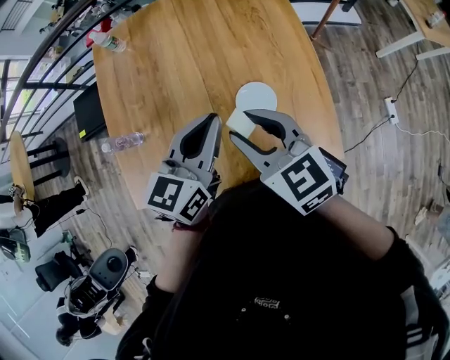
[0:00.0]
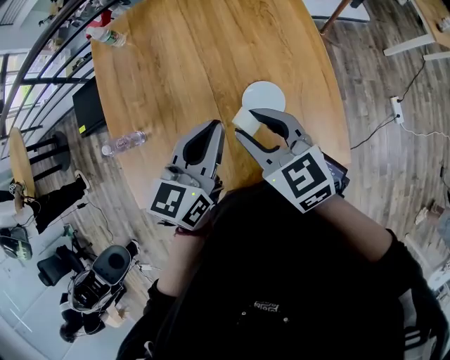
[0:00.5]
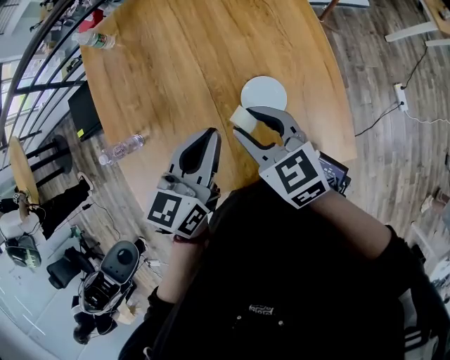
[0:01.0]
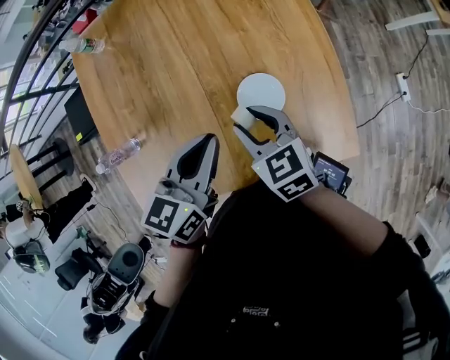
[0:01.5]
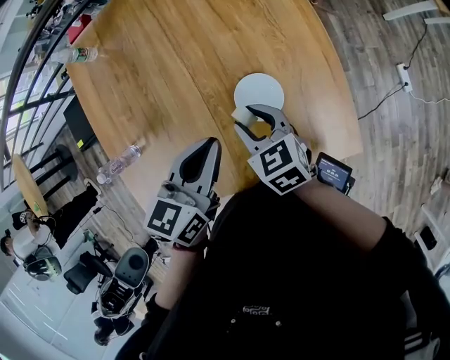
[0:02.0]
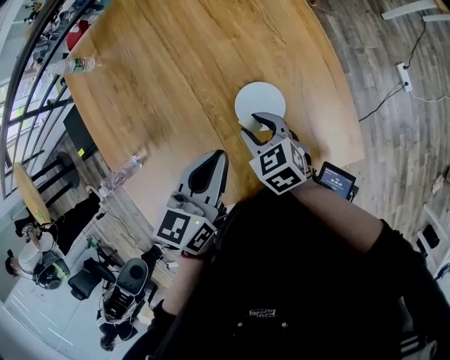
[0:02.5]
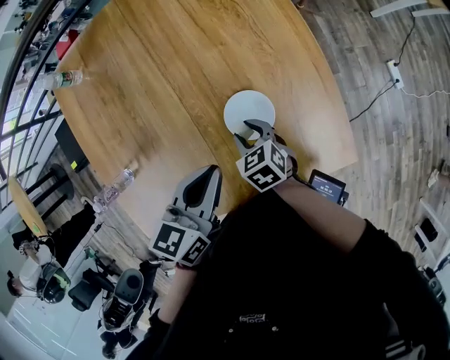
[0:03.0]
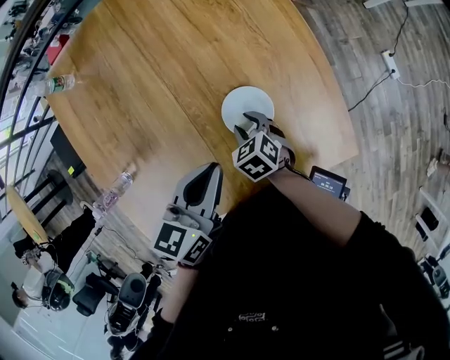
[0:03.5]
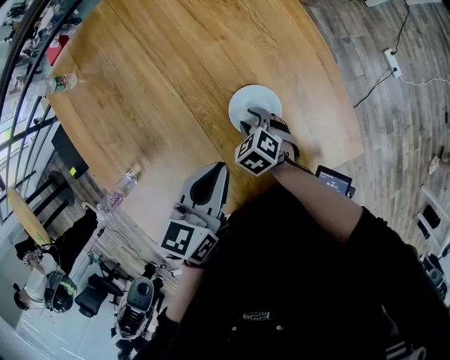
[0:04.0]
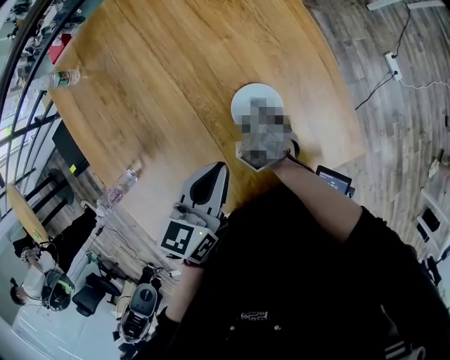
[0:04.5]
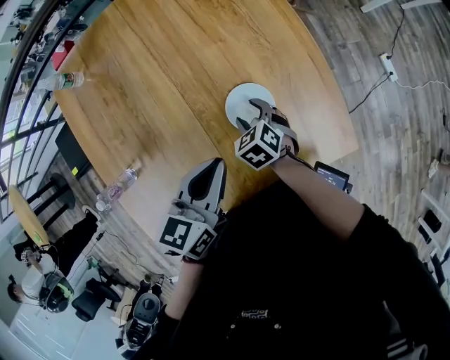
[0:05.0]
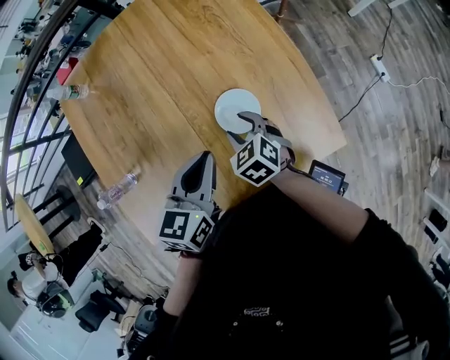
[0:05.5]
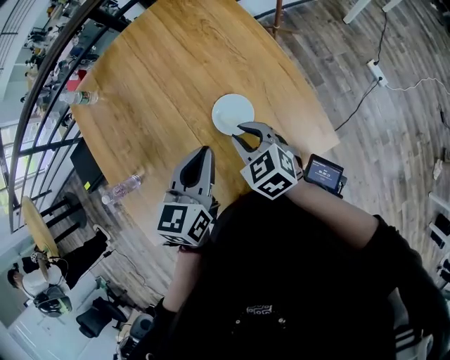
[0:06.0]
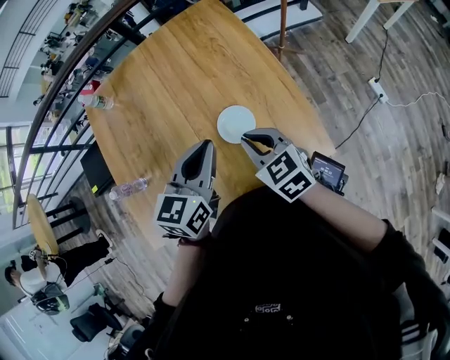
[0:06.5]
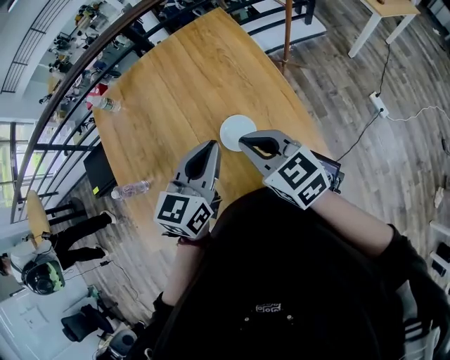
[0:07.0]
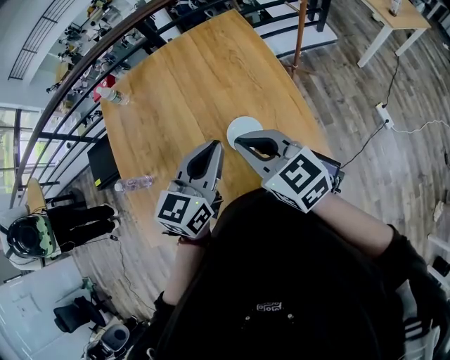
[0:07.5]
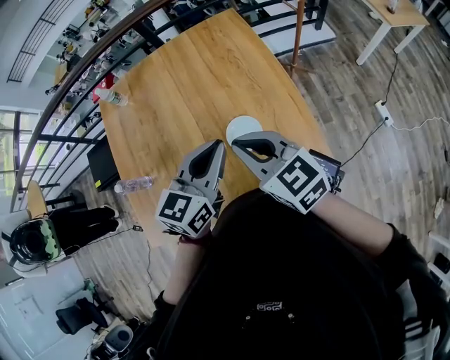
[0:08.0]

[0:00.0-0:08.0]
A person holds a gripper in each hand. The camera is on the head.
0:00.0 to 0:02.0: The right gripper shifts some 20 cm downward, and rotates about 20 degrees. The left gripper shifts roughly 10 cm downward.
0:02.0 to 0:04.0: The right gripper moves downward, some 15 cm, and rotates roughly 30 degrees; the left gripper changes place by approximately 5 cm.
0:04.0 to 0:06.0: The left gripper moves upward, roughly 5 cm. Meanwhile the right gripper travels upward by approximately 20 cm, and turns by approximately 30 degrees.
0:06.0 to 0:08.0: The left gripper travels upward by about 10 cm; the right gripper is displaced upward by approximately 20 cm, and rotates approximately 30 degrees.

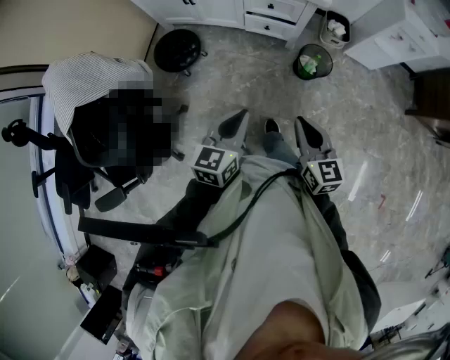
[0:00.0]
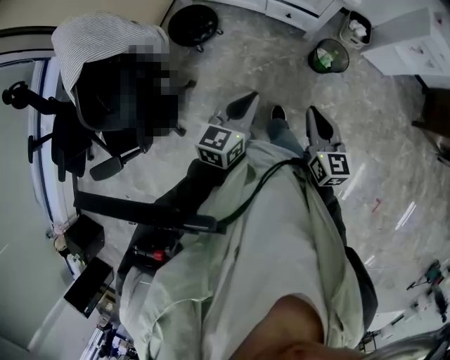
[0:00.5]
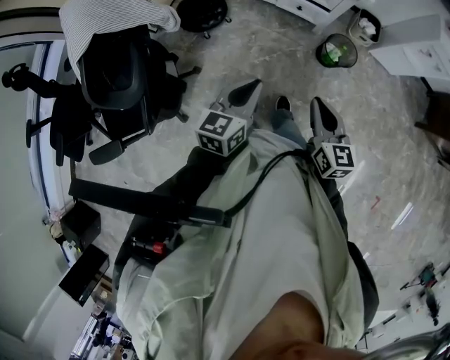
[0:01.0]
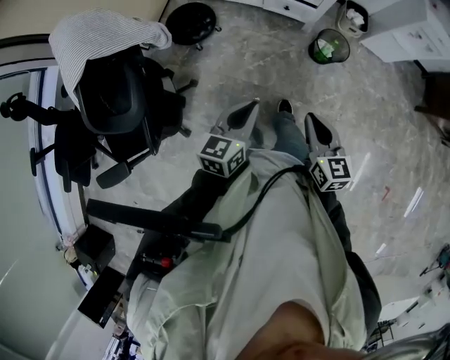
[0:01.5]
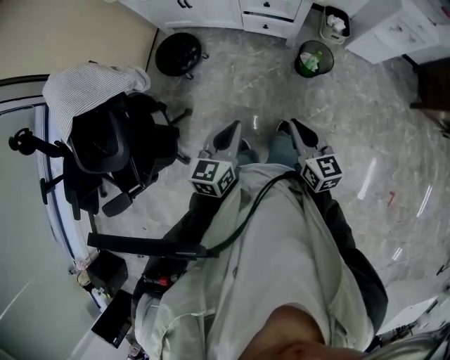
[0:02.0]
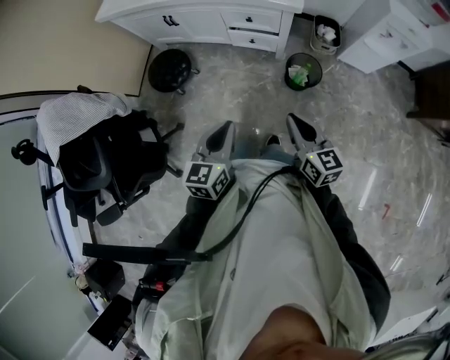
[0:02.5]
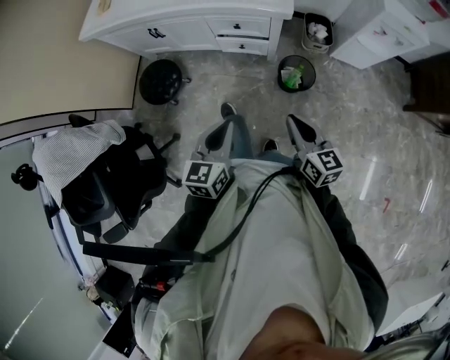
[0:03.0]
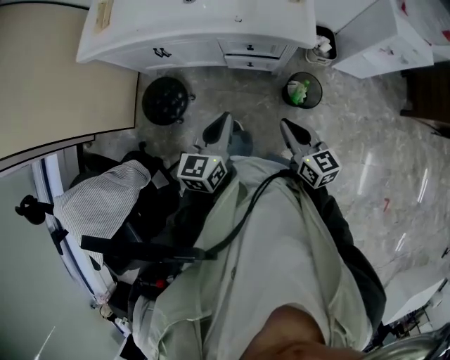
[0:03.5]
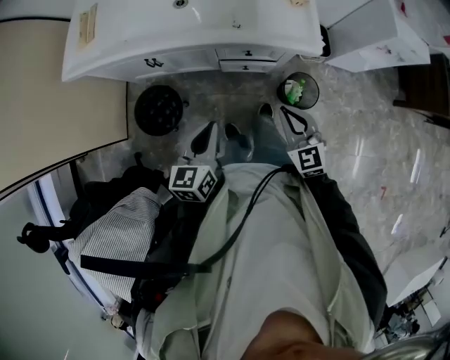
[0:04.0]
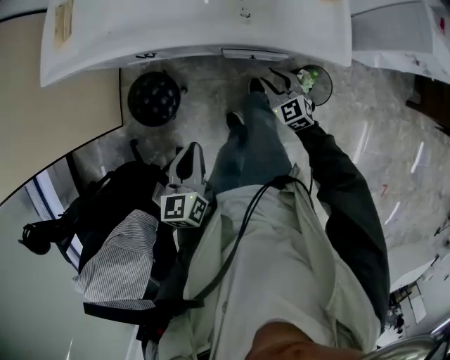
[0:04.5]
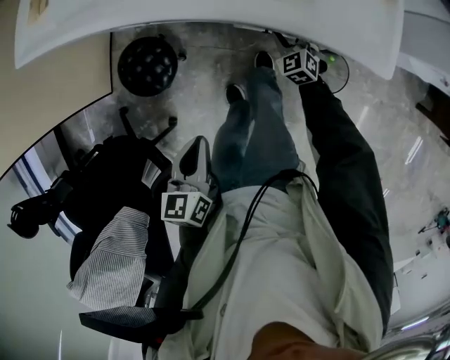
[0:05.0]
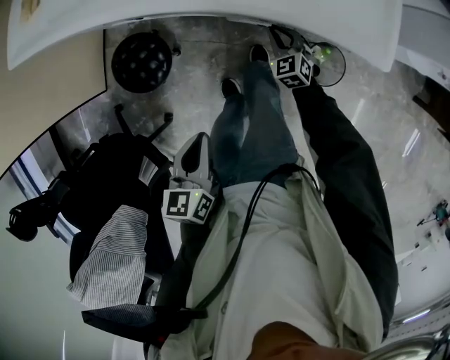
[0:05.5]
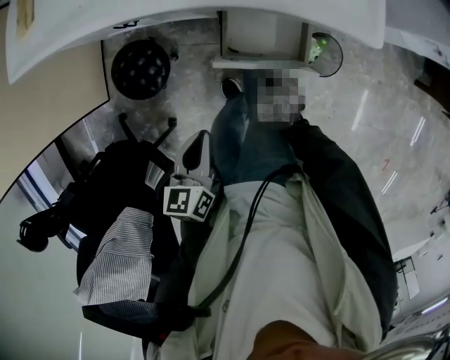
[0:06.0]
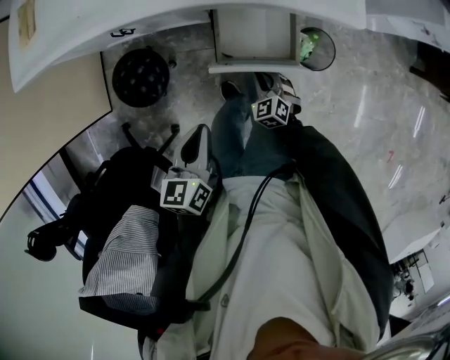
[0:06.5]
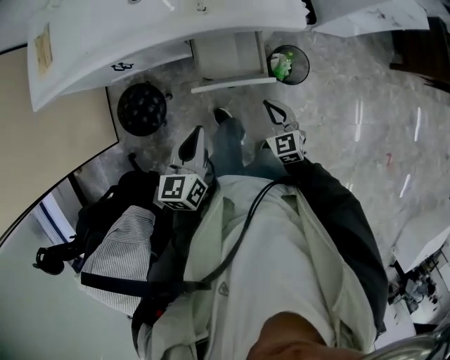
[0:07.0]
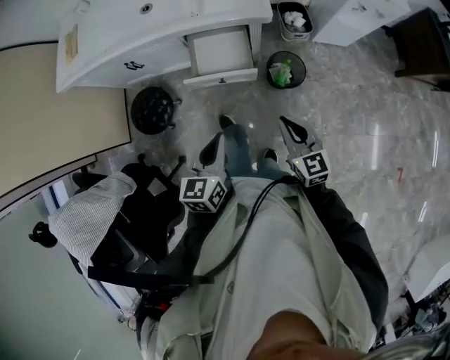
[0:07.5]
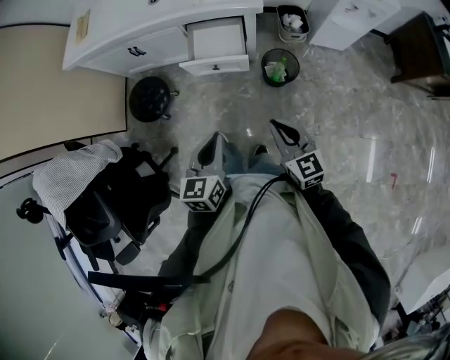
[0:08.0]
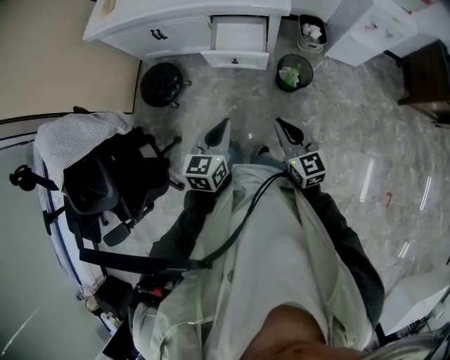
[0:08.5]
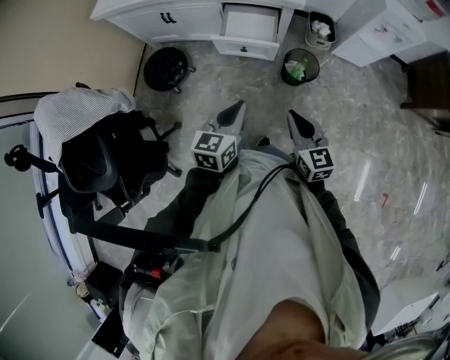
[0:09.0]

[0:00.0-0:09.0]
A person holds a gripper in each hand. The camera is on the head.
0:02.0 to 0:04.5: The left gripper is displaced forward by approximately 35 cm. Meanwhile the right gripper is displaced forward and downward by approximately 50 cm, swivels roughly 40 degrees, and opens.
0:04.5 to 0:07.0: The right gripper heads backward, covering roughly 15 cm, turns by about 20 degrees, and closes, while the left gripper heads to the right, covering some 10 cm.
0:07.0 to 0:09.0: The right gripper travels backward and upward by about 30 cm, and changes its angle by about 20 degrees. Meanwhile the left gripper travels backward and to the right by roughly 25 cm.

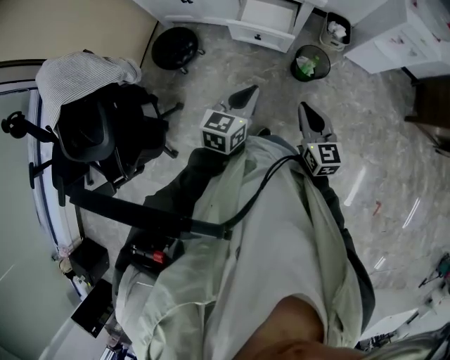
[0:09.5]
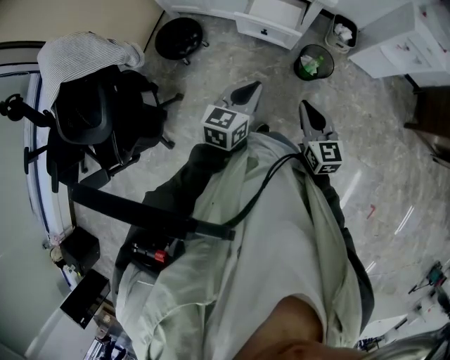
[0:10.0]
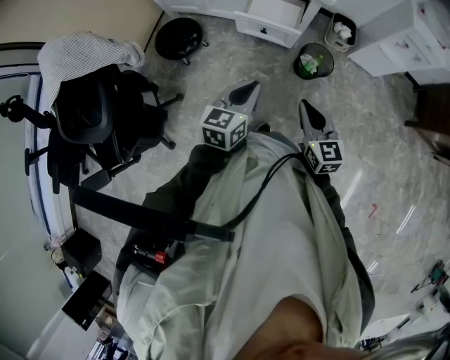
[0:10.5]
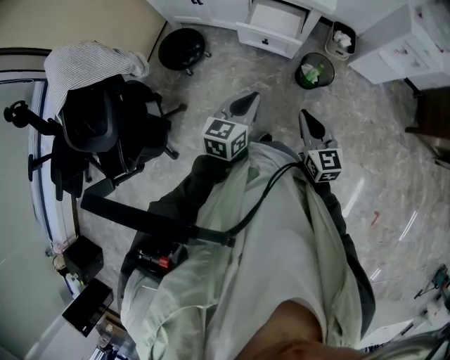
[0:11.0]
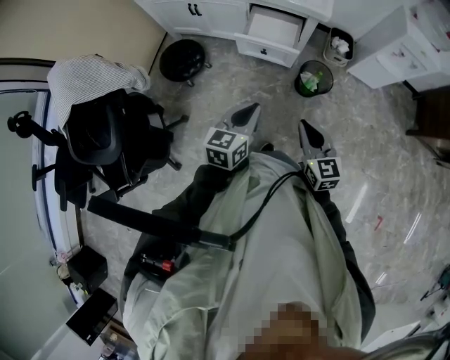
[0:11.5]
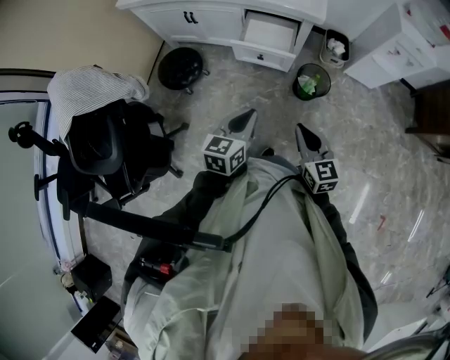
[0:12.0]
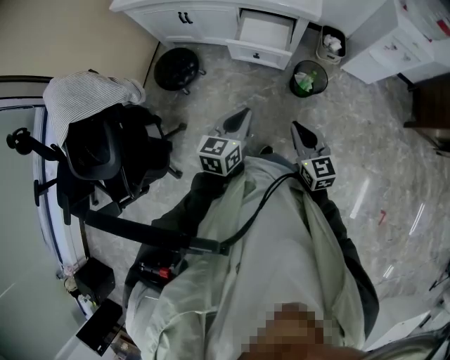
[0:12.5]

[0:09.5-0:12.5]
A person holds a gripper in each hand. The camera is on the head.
0:09.5 to 0:11.0: The grippers stay close to where they were, moving slightly.
0:11.0 to 0:12.5: Neither gripper changes place.

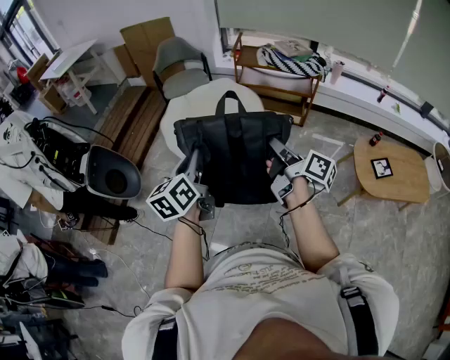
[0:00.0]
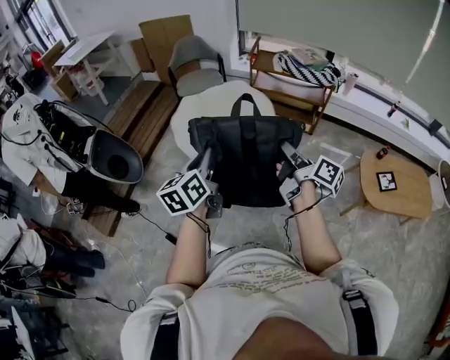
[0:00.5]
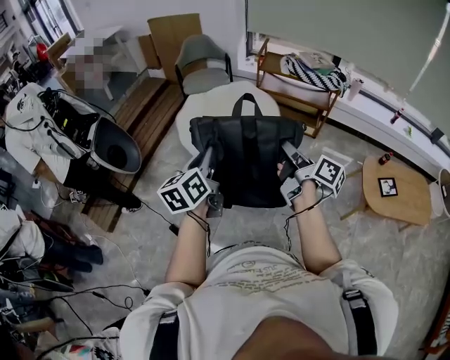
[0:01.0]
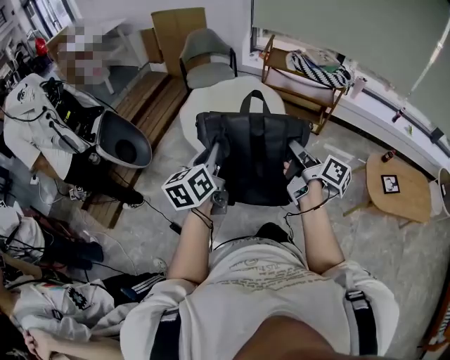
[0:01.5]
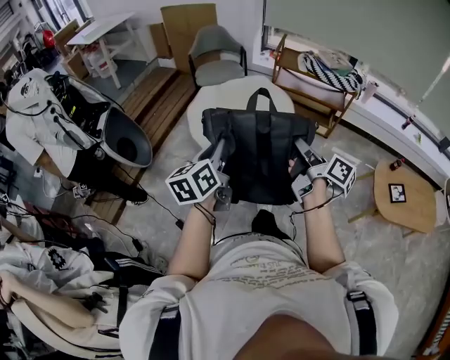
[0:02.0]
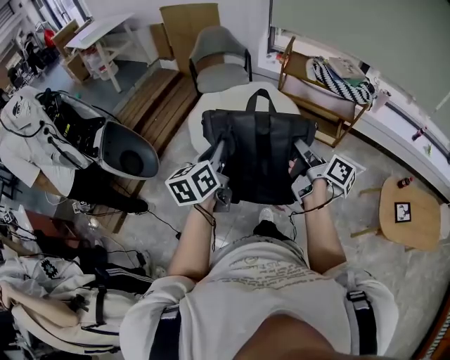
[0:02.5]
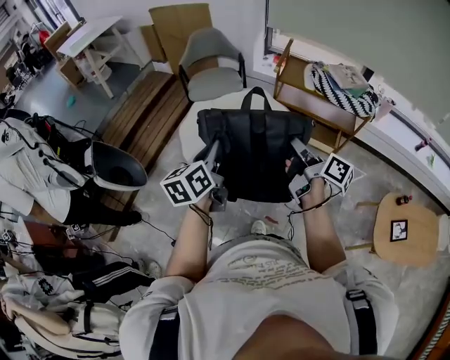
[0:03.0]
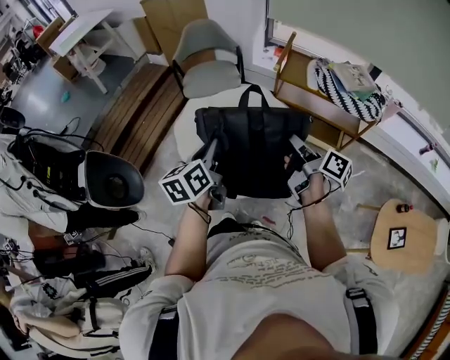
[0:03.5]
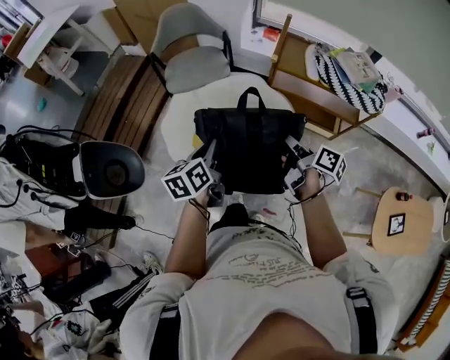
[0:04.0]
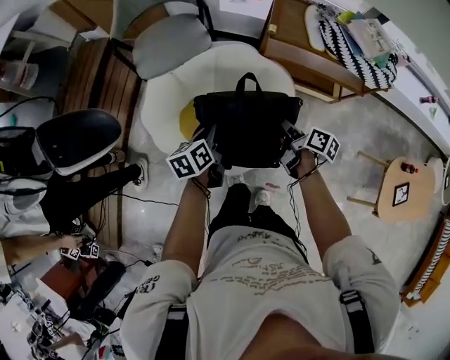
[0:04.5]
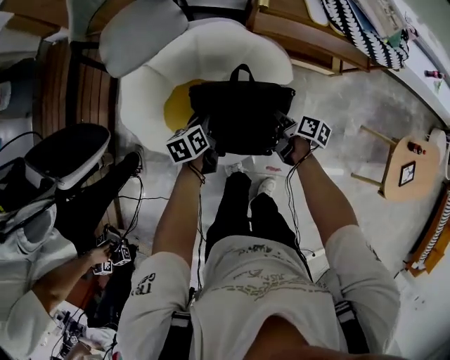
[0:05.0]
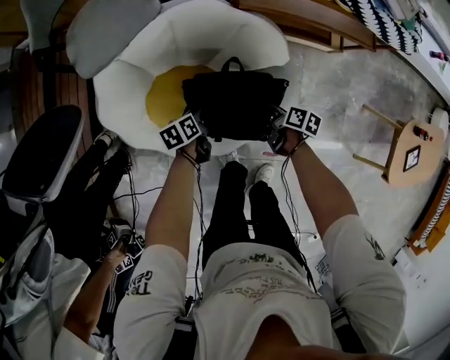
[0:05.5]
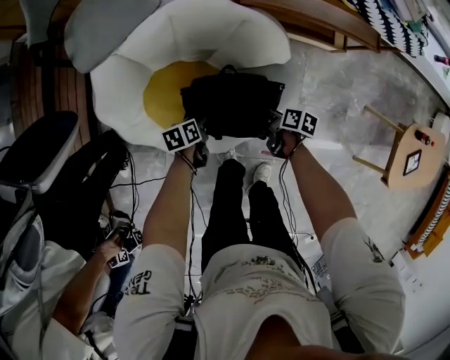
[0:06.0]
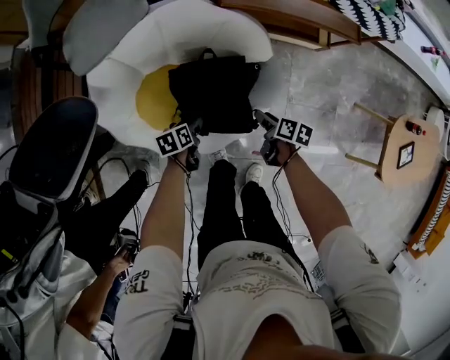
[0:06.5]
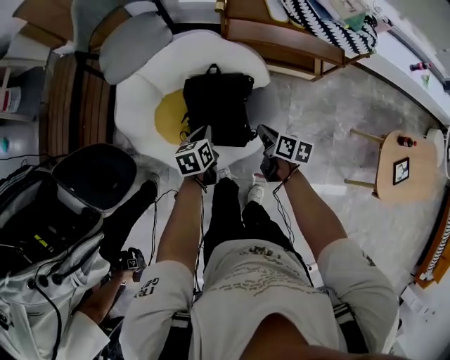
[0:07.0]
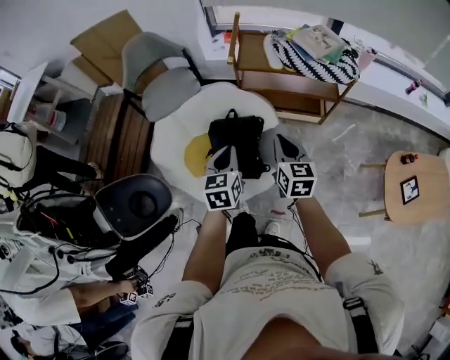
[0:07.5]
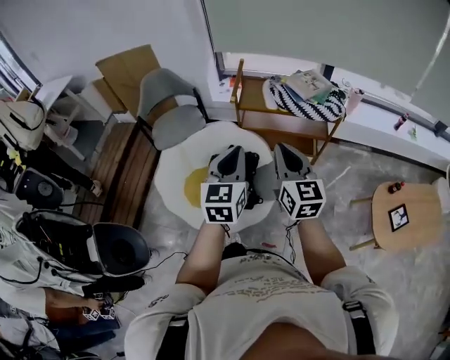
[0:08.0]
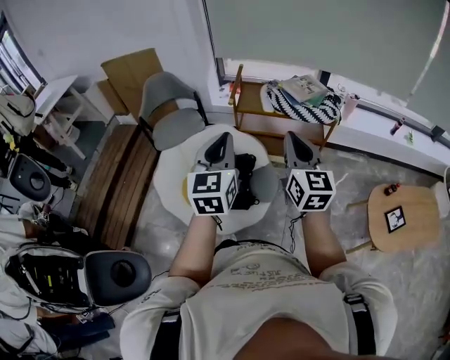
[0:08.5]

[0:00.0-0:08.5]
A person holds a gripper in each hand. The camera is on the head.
0:00.0 to 0:02.0: The grippers both shift to the left by approximately 10 cm.
0:02.0 to 0:04.0: The two grippers travel together, forward, some 50 cm.
0:04.0 to 0:06.5: The grippers both shift downward by about 40 cm. The left gripper points its fingers some 30 degrees further downward, and opens; the right gripper swivels roughly 30 degrees, and opens up.
0:06.5 to 0:08.5: Both grippers travel together upward, some 70 cm. The left gripper tilts its fingers about 50 degrees upward, and closes its fingers; the right gripper tips its fingers upward by approximately 50 degrees, and closes.
